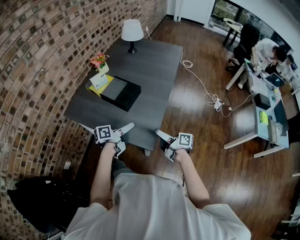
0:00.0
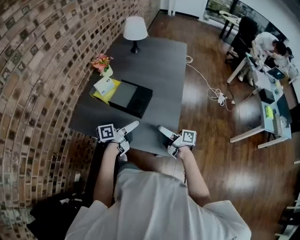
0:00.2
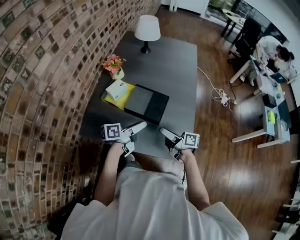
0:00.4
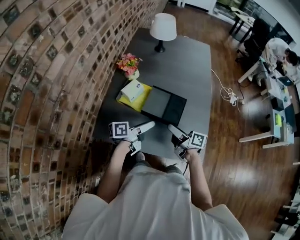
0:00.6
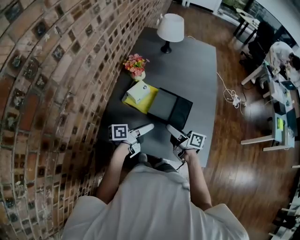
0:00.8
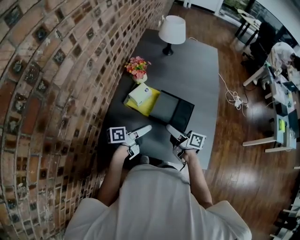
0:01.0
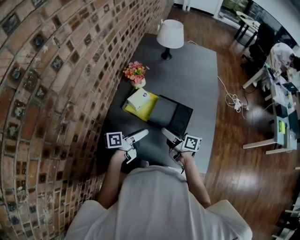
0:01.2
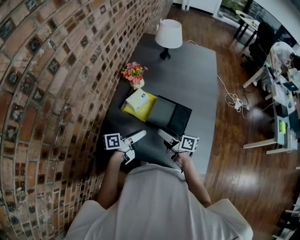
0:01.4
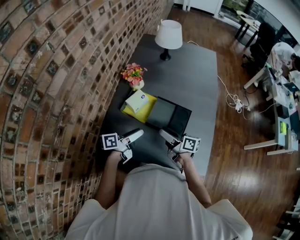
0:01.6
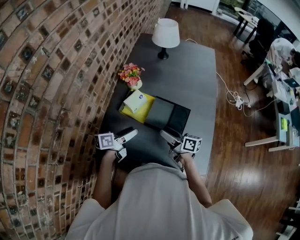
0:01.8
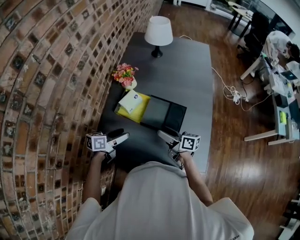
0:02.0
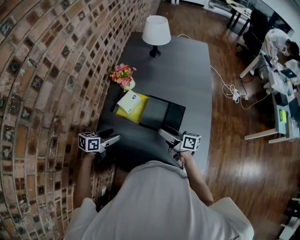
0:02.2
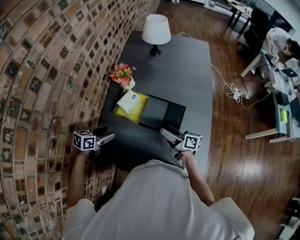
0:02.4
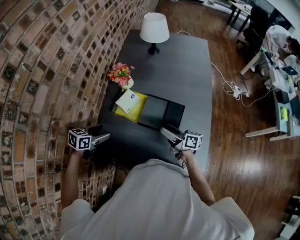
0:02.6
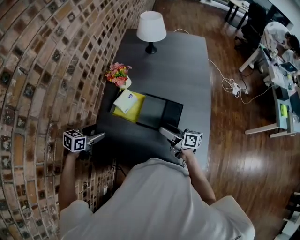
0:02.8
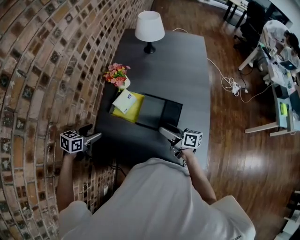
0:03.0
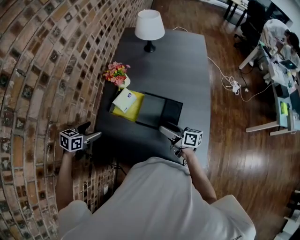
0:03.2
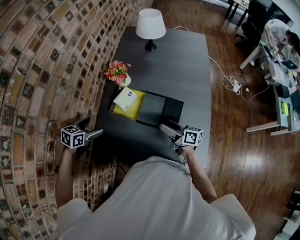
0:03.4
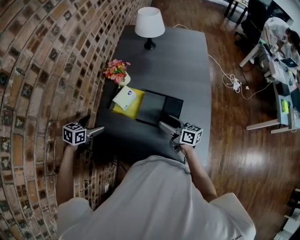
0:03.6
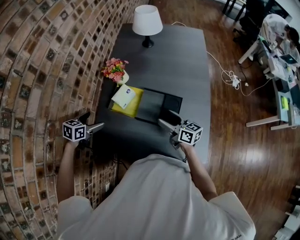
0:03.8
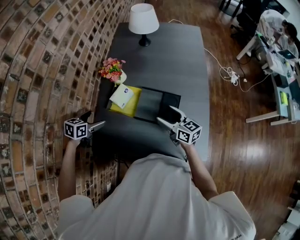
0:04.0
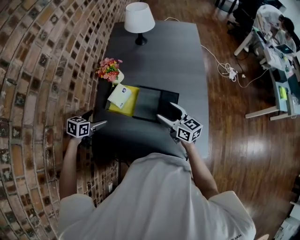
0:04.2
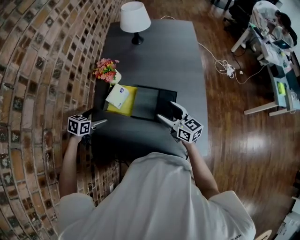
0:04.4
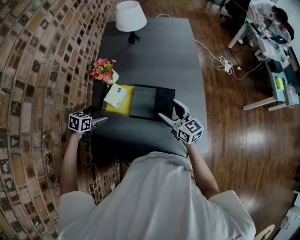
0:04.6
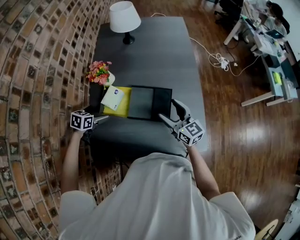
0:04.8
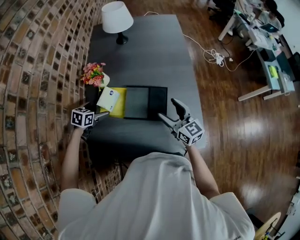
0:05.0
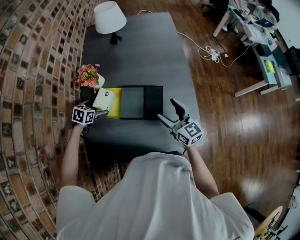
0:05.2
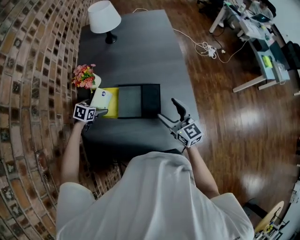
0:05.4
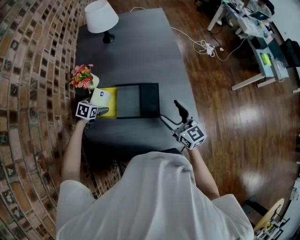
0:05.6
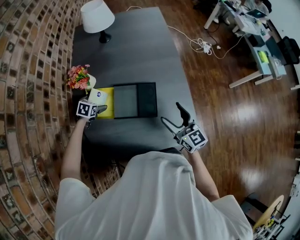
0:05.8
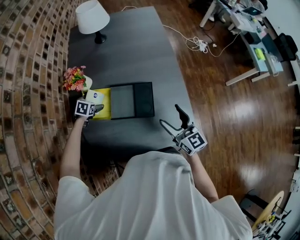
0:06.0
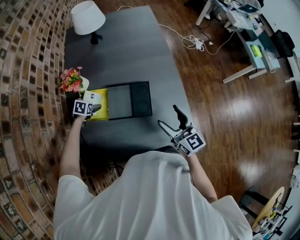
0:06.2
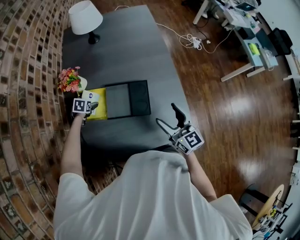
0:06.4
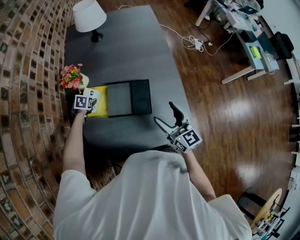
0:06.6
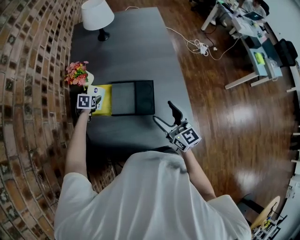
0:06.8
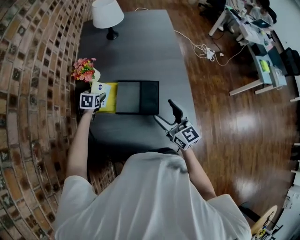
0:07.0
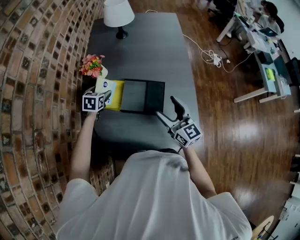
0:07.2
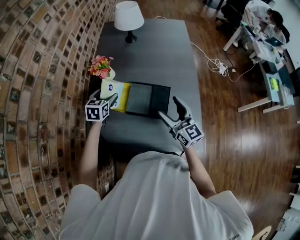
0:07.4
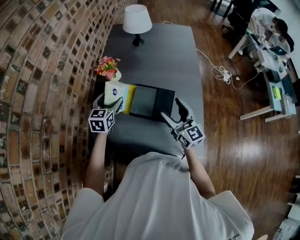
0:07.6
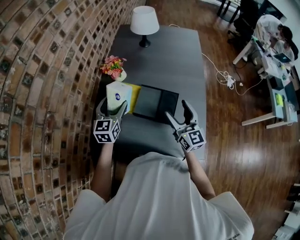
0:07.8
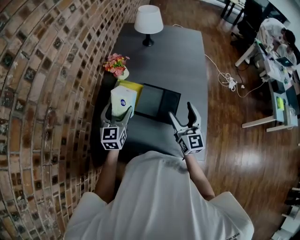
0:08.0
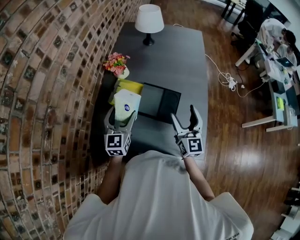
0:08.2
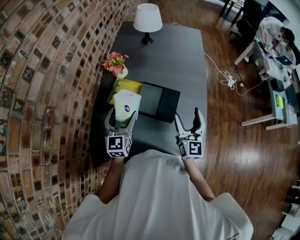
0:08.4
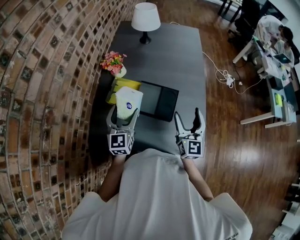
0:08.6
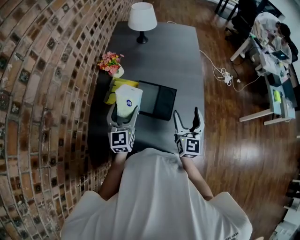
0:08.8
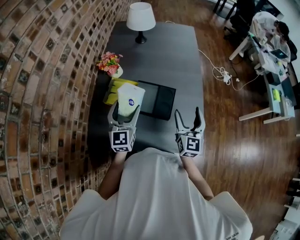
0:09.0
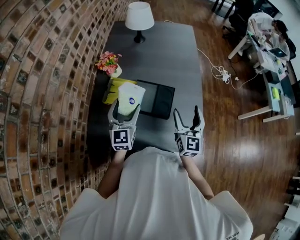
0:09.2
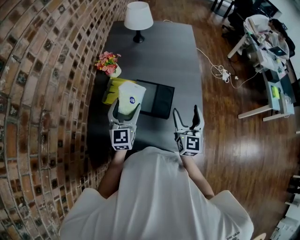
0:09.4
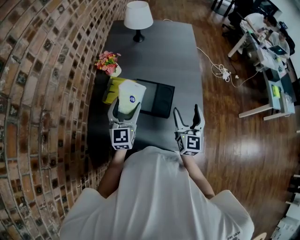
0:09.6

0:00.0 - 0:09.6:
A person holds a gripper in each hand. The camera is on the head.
0:00.0 - 0:01.6: The two grippers go approximately 40 cm to the left and forward.
0:01.6 - 0:03.2: The right gripper goes some 5 cm to the right; the left gripper travels to the left by some 15 cm, and tips its fingers downward by about 40 degrees.
0:03.2 - 0:04.8: The right gripper travels to the right by some 5 cm, and twists approximately 40 degrees counterclockwise, seen from behind. Meanwhile the left gripper goes roughly 15 cm forward, downward and to the right.
0:04.8 - 0:06.4: The left gripper goes roughly 15 cm downward and forward, and swivels about 20 degrees; the right gripper moves to the right and backward, roughly 10 cm.
0:06.4 - 0:08.0: The left gripper heads upward and backward, covering roughly 30 cm, and tilts its fingers some 60 degrees upward, while the right gripper is displaced forward and to the left by roughly 5 cm.
0:08.0 - 0:09.6: Both grippers travel together to the right, approximately 5 cm.

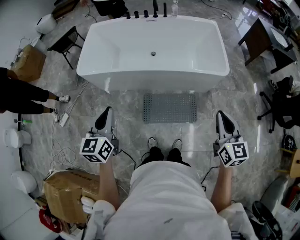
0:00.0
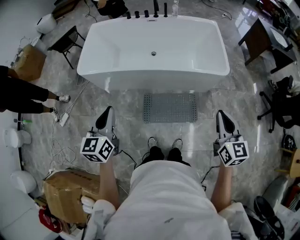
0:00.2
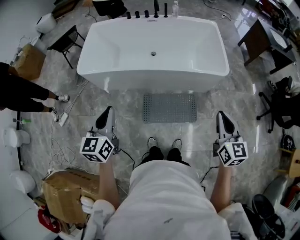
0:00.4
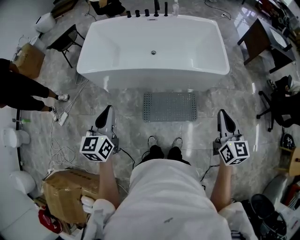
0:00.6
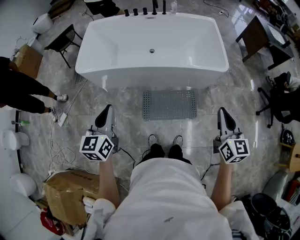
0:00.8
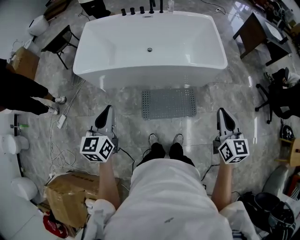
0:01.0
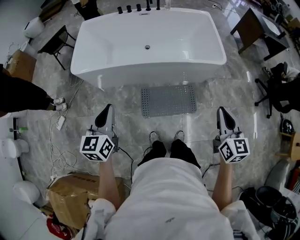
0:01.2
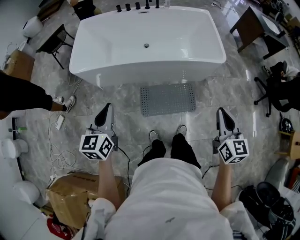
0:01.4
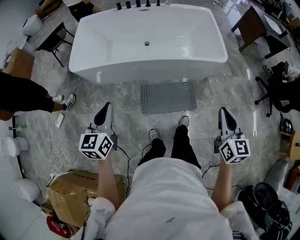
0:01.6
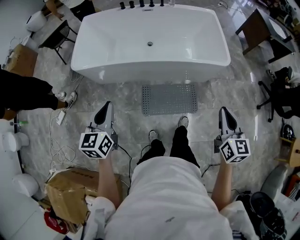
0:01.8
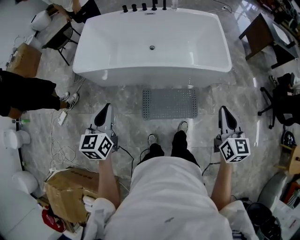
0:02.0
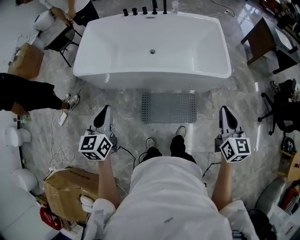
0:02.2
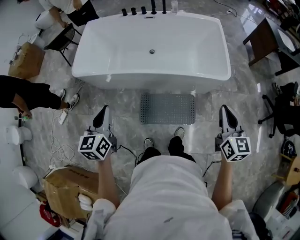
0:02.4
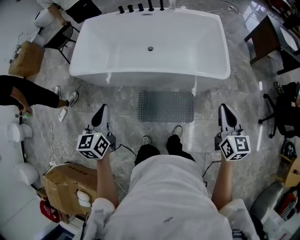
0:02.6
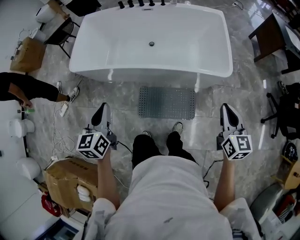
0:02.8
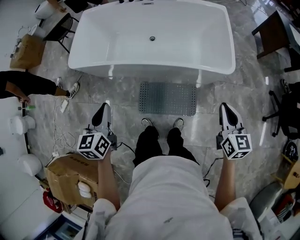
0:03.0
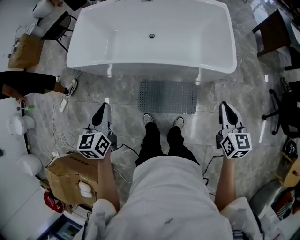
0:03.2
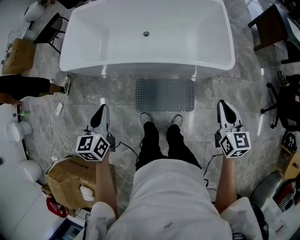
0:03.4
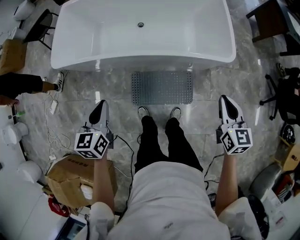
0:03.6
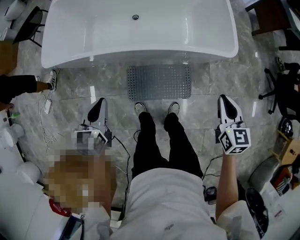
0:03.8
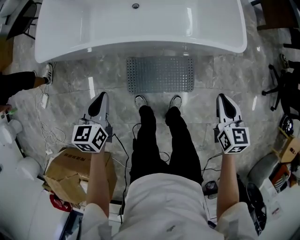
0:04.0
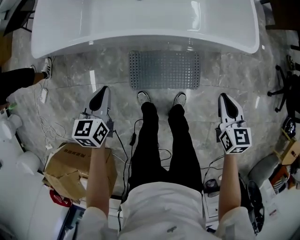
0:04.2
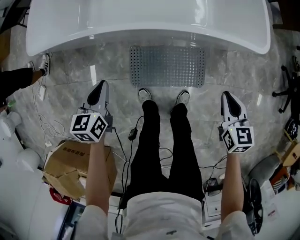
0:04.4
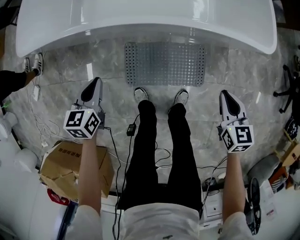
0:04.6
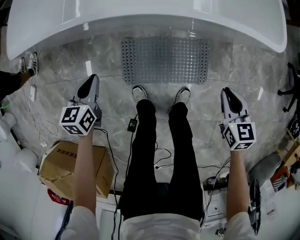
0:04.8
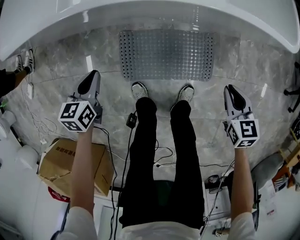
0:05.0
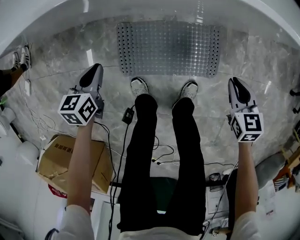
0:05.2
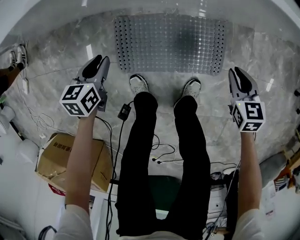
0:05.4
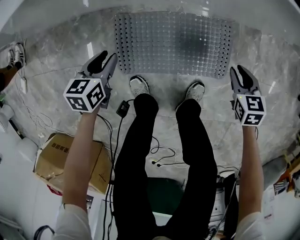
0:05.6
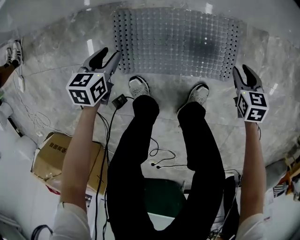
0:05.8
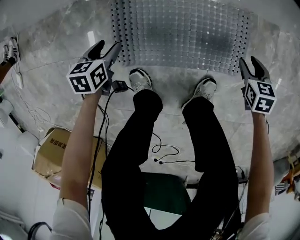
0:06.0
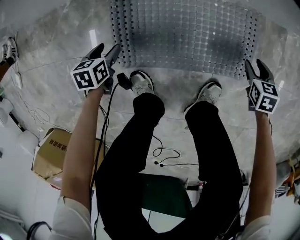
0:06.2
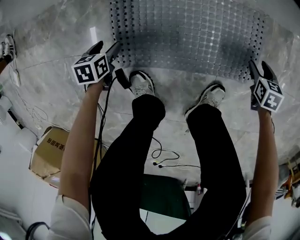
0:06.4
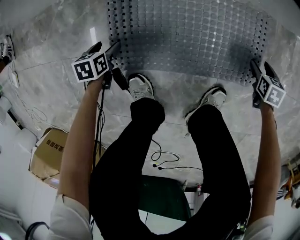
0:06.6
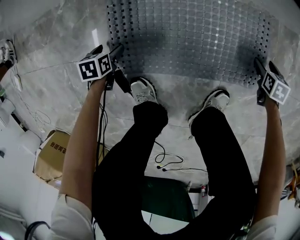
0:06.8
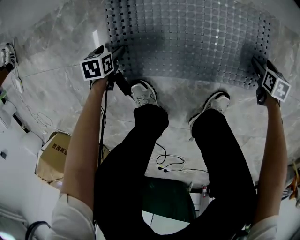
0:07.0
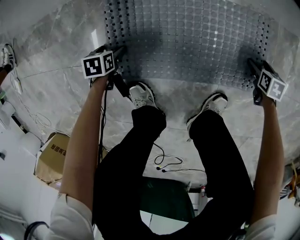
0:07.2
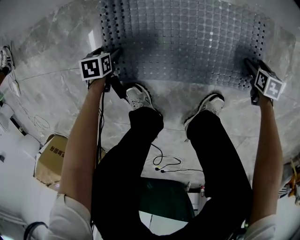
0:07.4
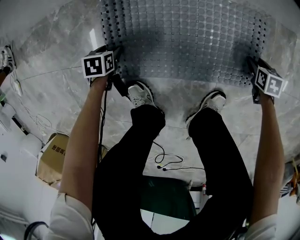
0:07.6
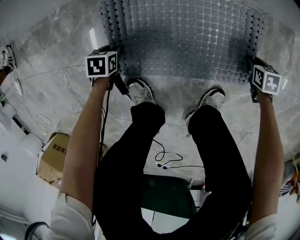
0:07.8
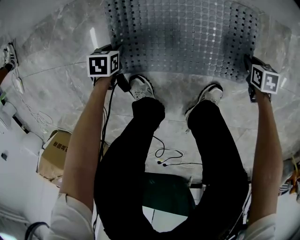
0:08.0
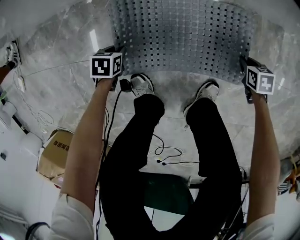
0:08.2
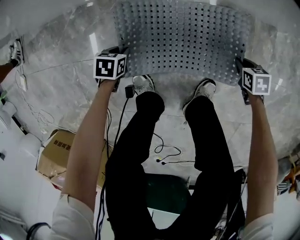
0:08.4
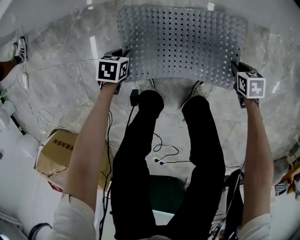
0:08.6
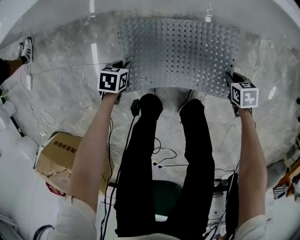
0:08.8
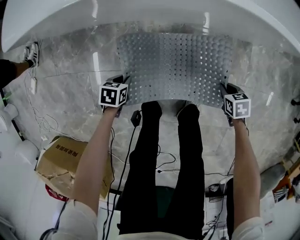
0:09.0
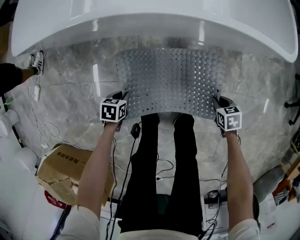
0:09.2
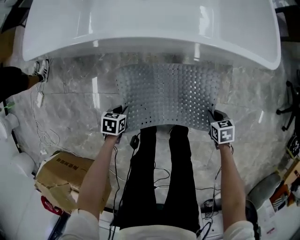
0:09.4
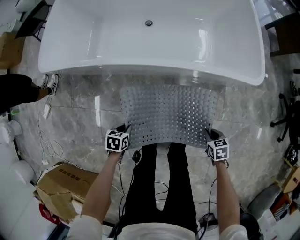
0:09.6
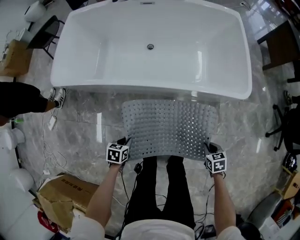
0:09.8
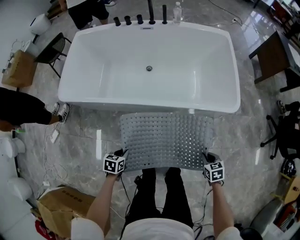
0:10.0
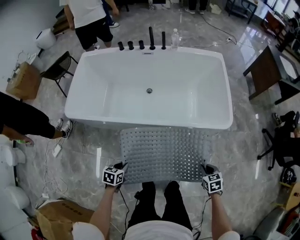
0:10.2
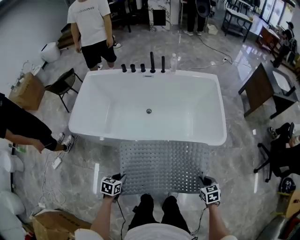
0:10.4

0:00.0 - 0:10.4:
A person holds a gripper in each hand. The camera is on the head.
0:00.0 - 0:01.4: The right gripper shifts by some 5 cm. Meanwhile the left gripper ends up about 5 cm from where it was.
0:01.4 - 0:03.0: The left gripper moves to the right and forward, approximately 20 cm. Meanwhile the right gripper is displaced forward and to the right by roughly 25 cm.
0:03.0 - 0:04.4: Both grippers move downward, about 30 cm.
0:04.4 - 0:06.0: The grippers both shift downward by some 50 cm. The left gripper swivels roughly 20 degrees, and opens its fingers. The right gripper changes its angle by some 20 degrees, and opens up.
0:06.0 - 0:07.4: Both grippers move downward, roughly 20 cm. The left gripper rotates approximately 20 degrees. Meanwhile the right gripper opens its fingers.
0:07.4 - 0:09.0: The grippers both shift upward by some 30 cm. The right gripper closes up; the left gripper closes.
0:09.0 - 0:10.4: The grippers both shift upward by about 50 cm. The left gripper turns by roughly 20 degrees, while the right gripper changes its angle by some 20 degrees.

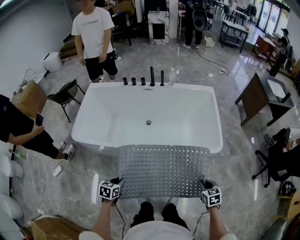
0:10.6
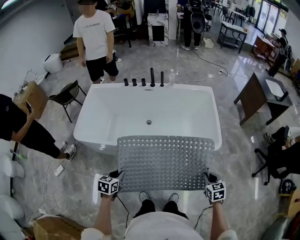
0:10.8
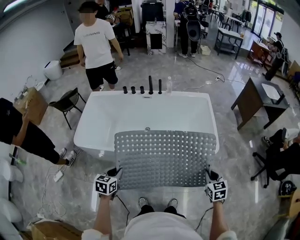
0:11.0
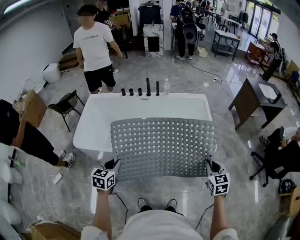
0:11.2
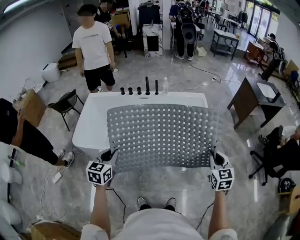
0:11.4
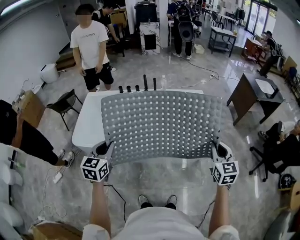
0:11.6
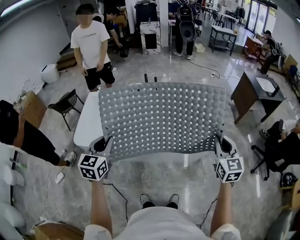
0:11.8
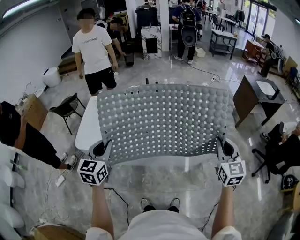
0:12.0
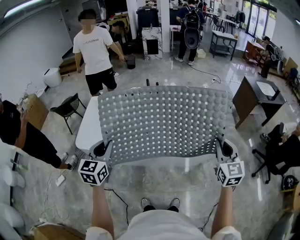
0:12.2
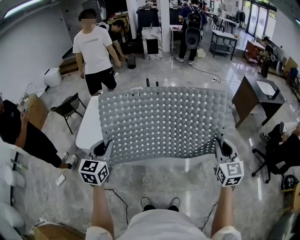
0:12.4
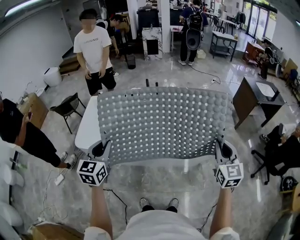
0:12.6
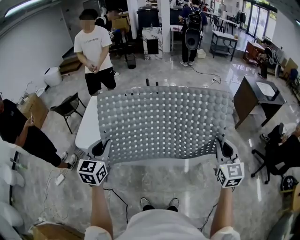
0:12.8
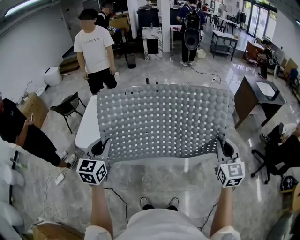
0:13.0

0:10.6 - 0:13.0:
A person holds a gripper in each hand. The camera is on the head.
0:10.6 - 0:11.8: The two grippers go some 35 cm upward. The left gripper tilts its fingers about 30 degrees upward; the right gripper points its fingers approximately 40 degrees further upward.
0:11.8 - 0:13.0: The grippers move only a little.

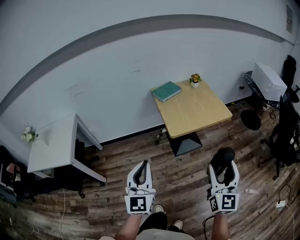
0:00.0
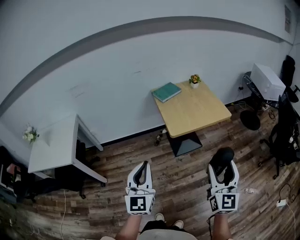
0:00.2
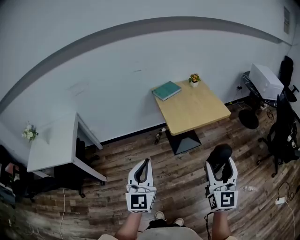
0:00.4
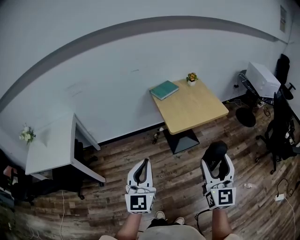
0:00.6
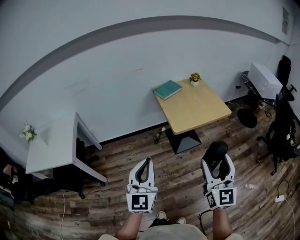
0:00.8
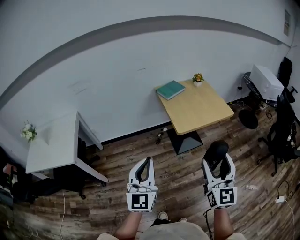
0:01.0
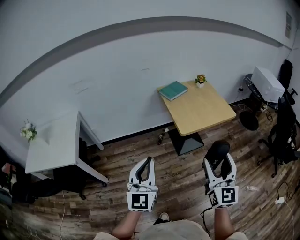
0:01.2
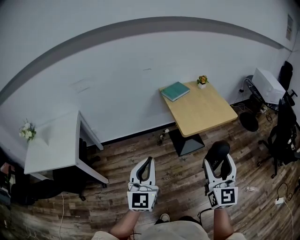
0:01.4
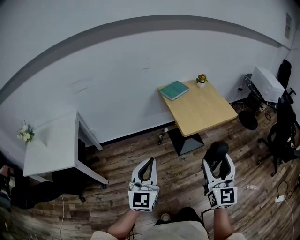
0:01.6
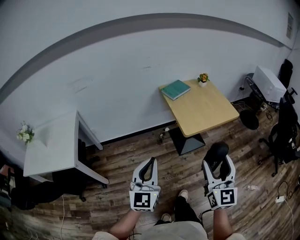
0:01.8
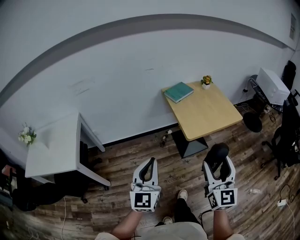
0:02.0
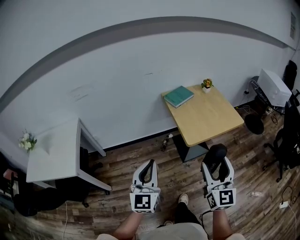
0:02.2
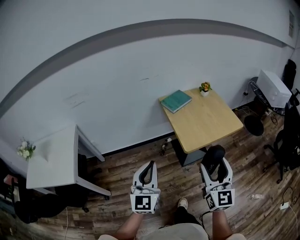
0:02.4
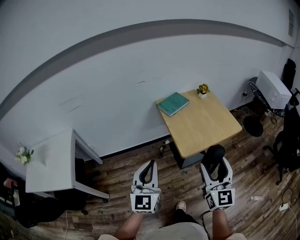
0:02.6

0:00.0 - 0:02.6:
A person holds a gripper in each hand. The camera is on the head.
0:00.0 - 0:01.2: Both grippers move to the left, approximately 10 cm.
0:01.2 - 0:02.6: Both grippers move forward, about 20 cm.
